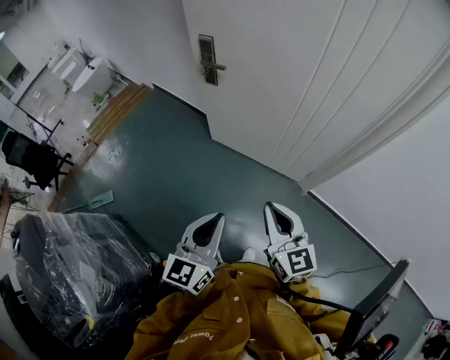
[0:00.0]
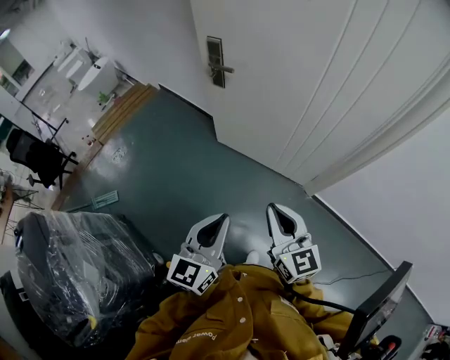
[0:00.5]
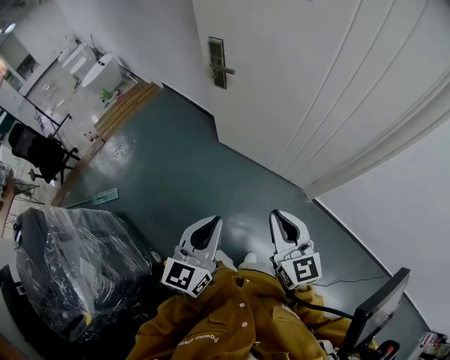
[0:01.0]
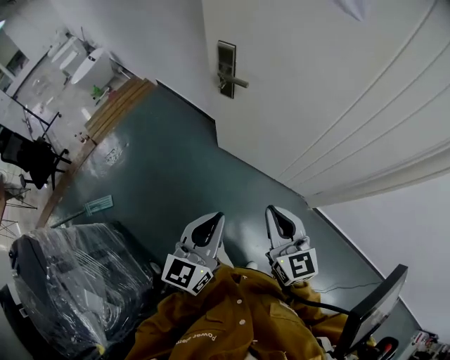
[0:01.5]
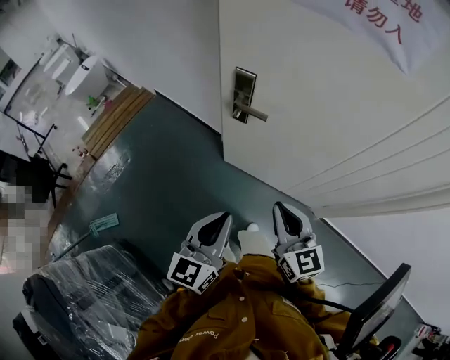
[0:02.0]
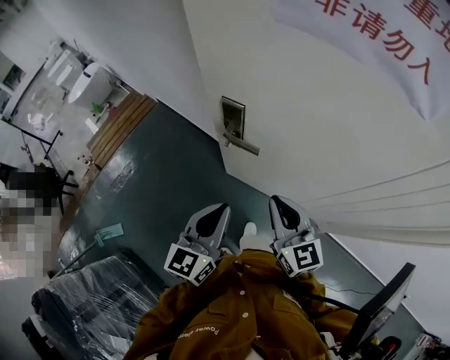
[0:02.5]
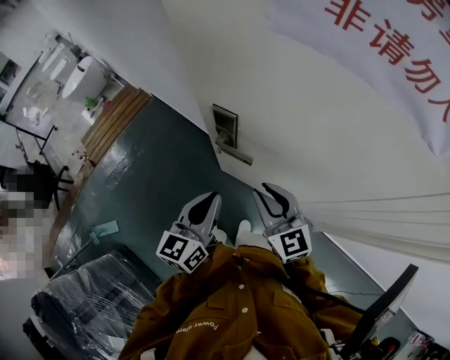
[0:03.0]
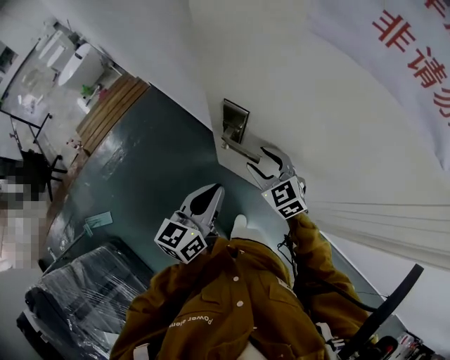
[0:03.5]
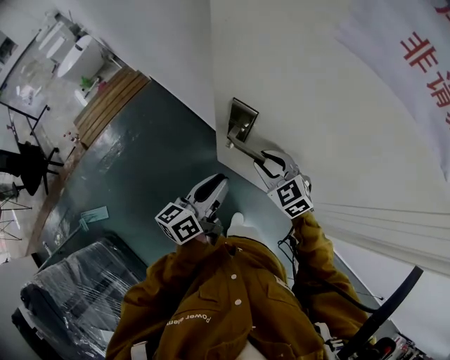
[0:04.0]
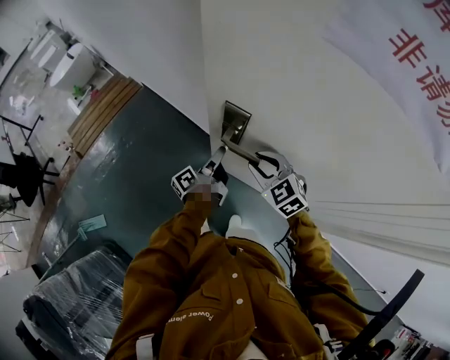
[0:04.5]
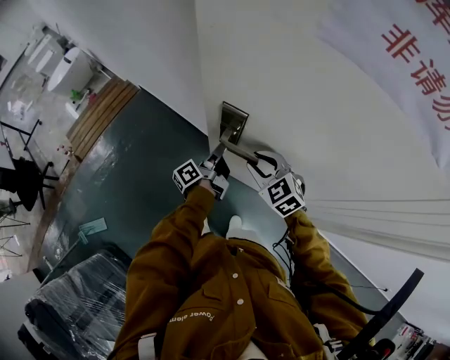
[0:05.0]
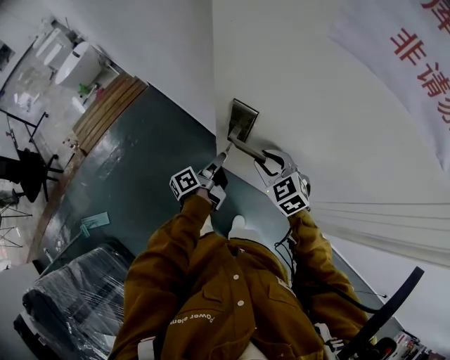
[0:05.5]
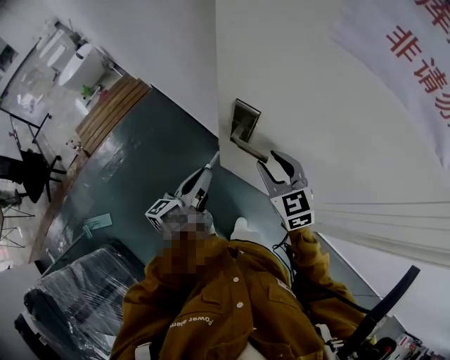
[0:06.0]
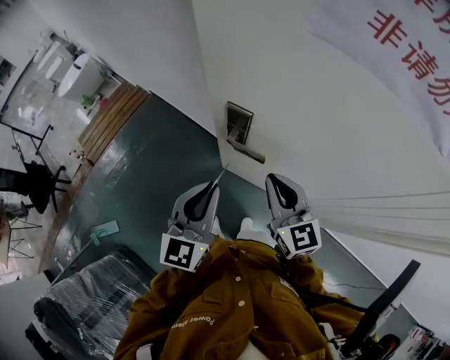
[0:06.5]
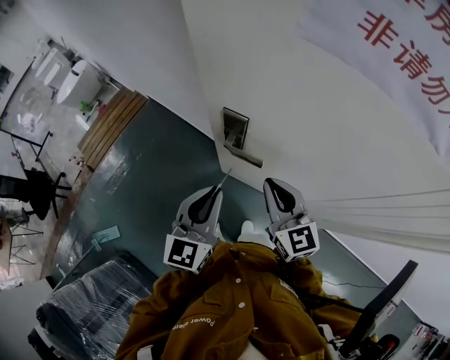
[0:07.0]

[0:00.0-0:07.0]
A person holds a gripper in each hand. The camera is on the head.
0:00.0 to 0:02.0: The two grippers go some 35 cm forward and to the left.
0:02.0 to 0:03.5: Both grippers move forward, approximately 25 cm. The right gripper rotates roughly 30 degrees, and opens.
0:03.5 to 0:05.0: The left gripper shifts about 25 cm forward and downward, rotates around the line of its fingers by approximately 60 degrees, counterclockwise from behind, and opens and closes again. The right gripper closes its fingers.
0:05.0 to 0:07.0: The right gripper travels upward and backward by some 15 cm, rotates about 40 degrees, and closes its fingers, while the left gripper heads upward and backward, covering roughly 25 cm, and twists roughly 80 degrees clockwise, seen from behind.

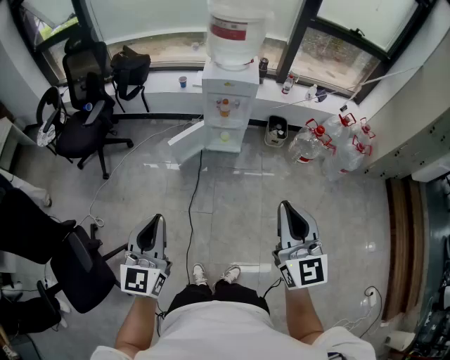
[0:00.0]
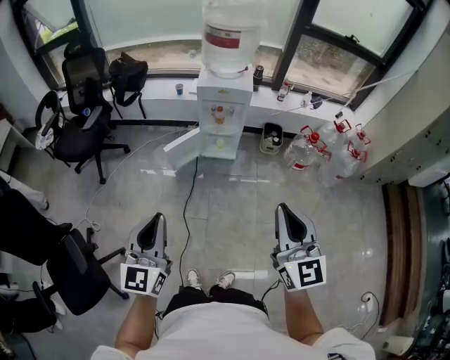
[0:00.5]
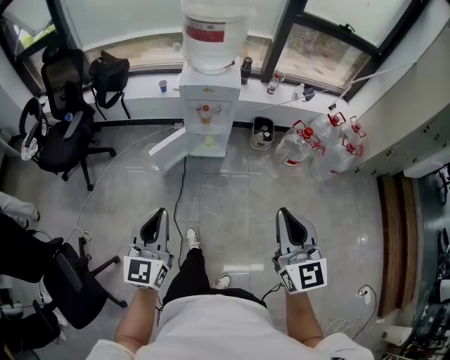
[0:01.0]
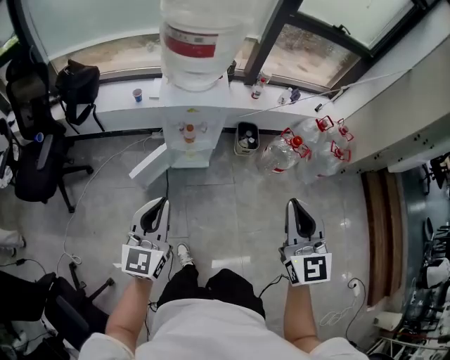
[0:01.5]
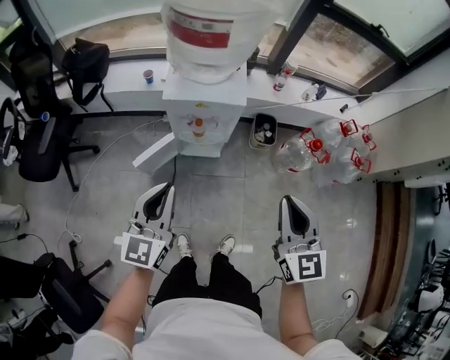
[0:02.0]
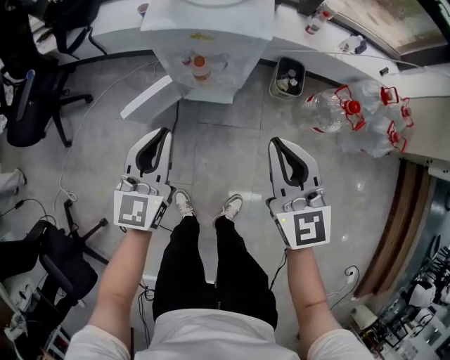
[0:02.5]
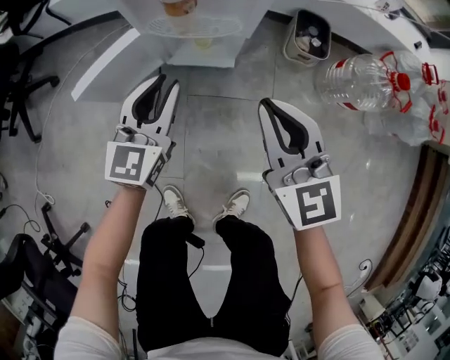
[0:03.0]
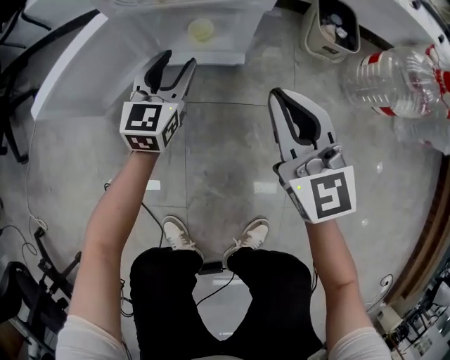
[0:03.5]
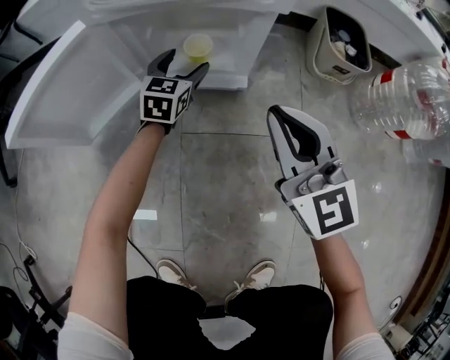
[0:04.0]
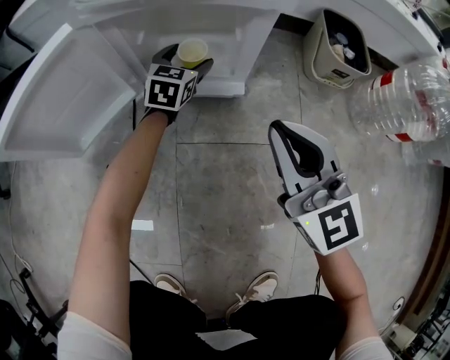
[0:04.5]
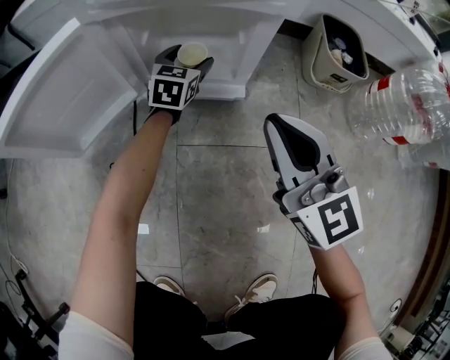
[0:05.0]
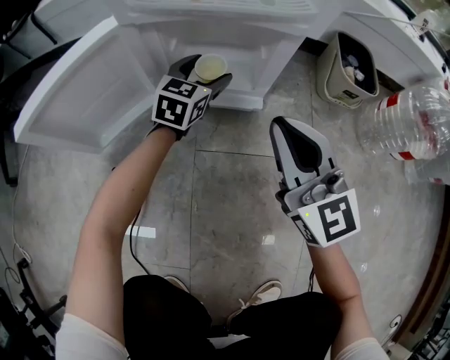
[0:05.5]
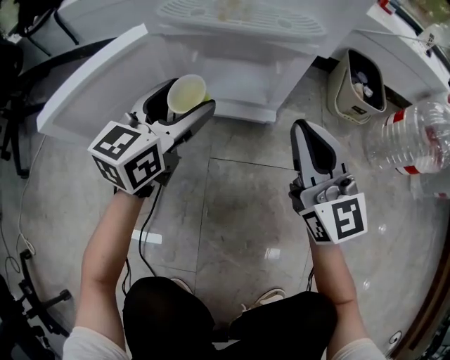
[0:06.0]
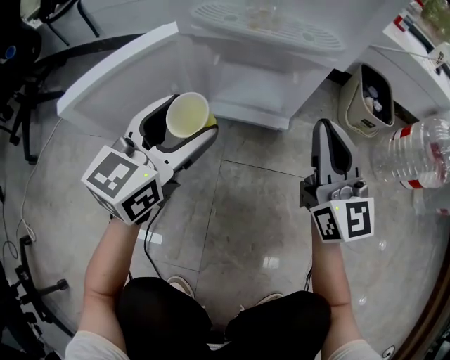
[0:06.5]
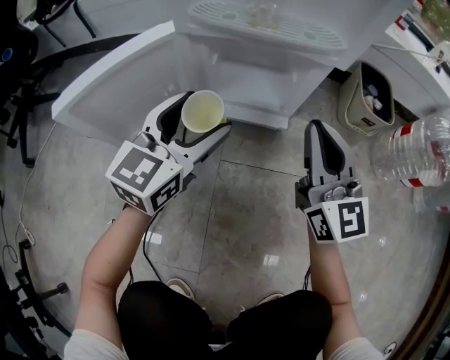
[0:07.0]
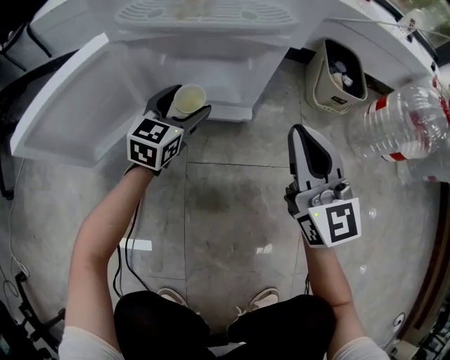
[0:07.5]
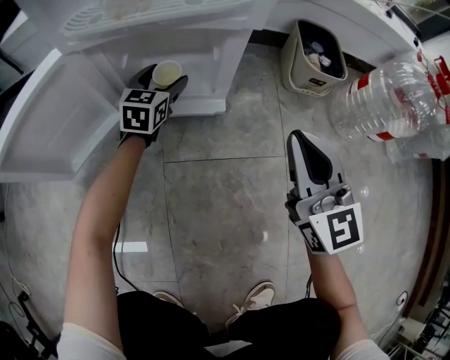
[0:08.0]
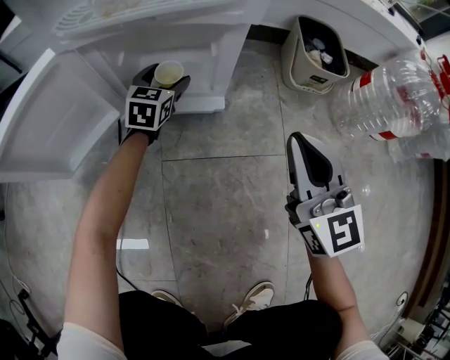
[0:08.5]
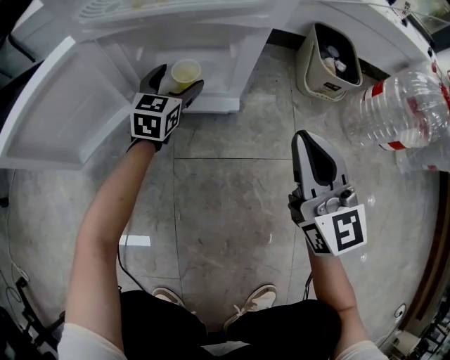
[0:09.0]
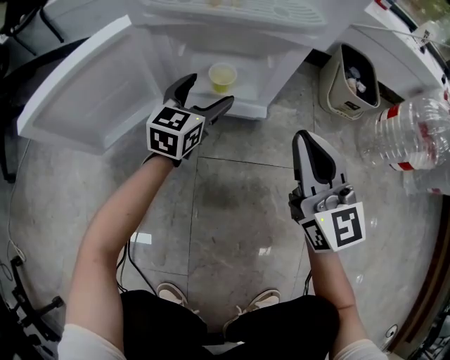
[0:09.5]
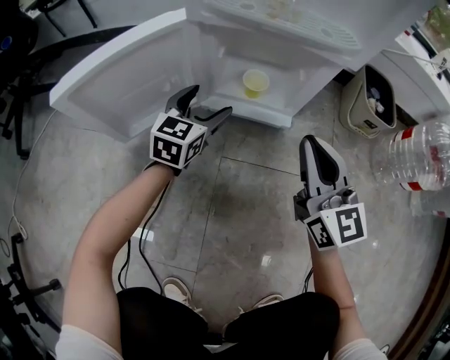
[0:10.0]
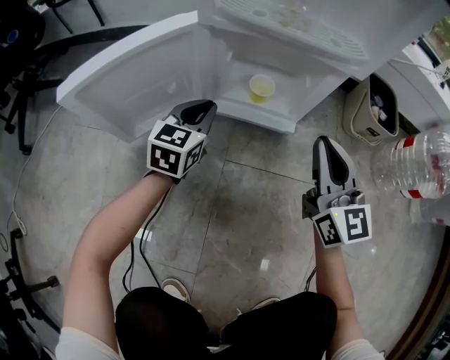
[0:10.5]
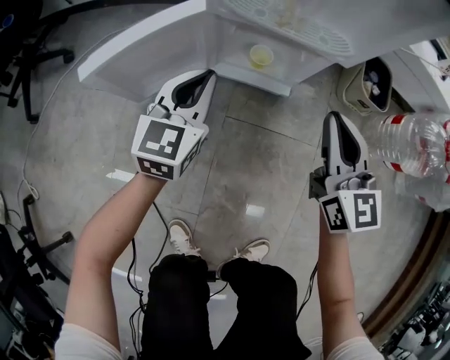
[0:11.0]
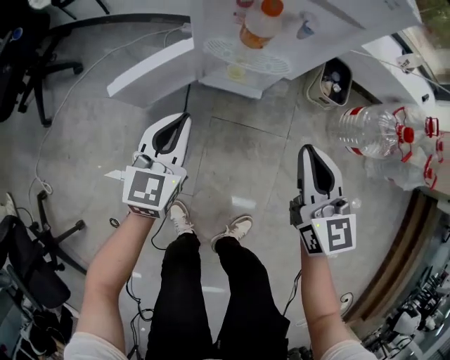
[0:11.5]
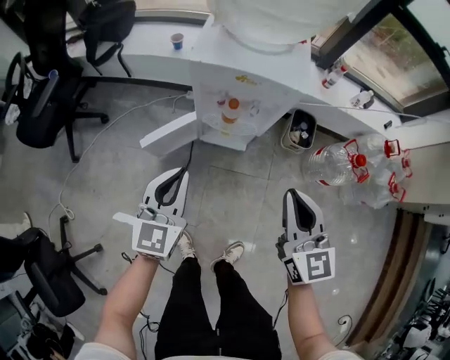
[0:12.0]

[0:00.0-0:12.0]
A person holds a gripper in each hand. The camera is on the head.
0:00.0 to 0:02.0: Both grippers travel together forward, about 35 cm.
0:02.0 to 0:04.0: The grippers both shift downward by some 70 cm. The left gripper opens up.
0:04.0 to 0:06.0: The left gripper moves upward, backward and to the left, roughly 20 cm, and changes its angle by approximately 20 degrees.
0:06.0 to 0:08.0: The left gripper heads downward and forward, covering about 20 cm. The right gripper goes roughly 10 cm to the right.
0:08.0 to 0:10.0: The right gripper travels to the left by roughly 10 cm, while the left gripper moves backward and to the left, some 15 cm.
0:10.0 to 0:12.0: Both grippers travel together upward, some 50 cm. The left gripper closes up.

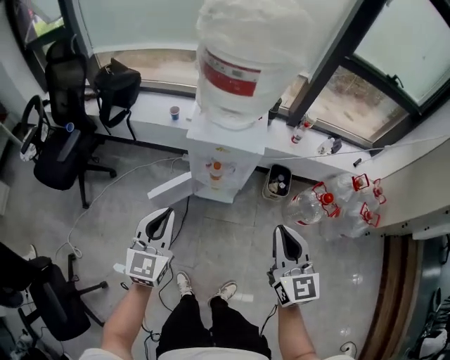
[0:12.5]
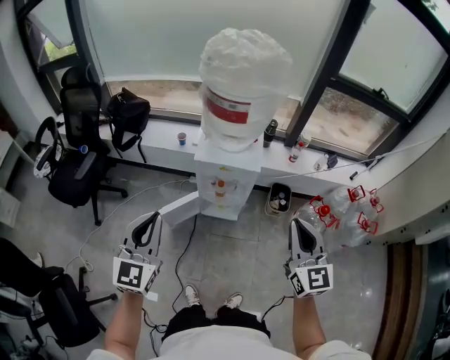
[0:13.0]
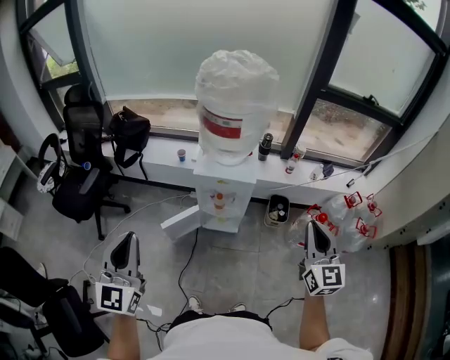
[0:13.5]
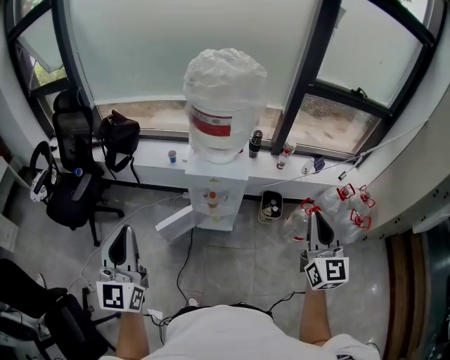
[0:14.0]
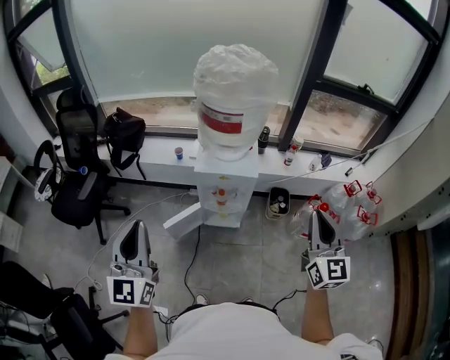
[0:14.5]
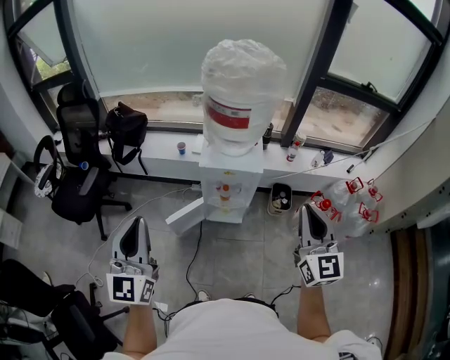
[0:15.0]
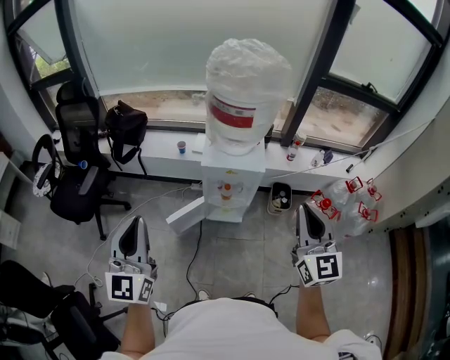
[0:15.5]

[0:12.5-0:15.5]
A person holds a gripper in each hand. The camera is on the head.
0:12.5 to 0:14.0: The right gripper moves upward and to the right, approximately 20 cm. Meanwhile the left gripper goes roughly 20 cm upward, and turns by approximately 20 degrees.
0:14.0 to 0:15.5: The left gripper moves some 5 cm, while the right gripper is displaced to the left by approximately 10 cm.

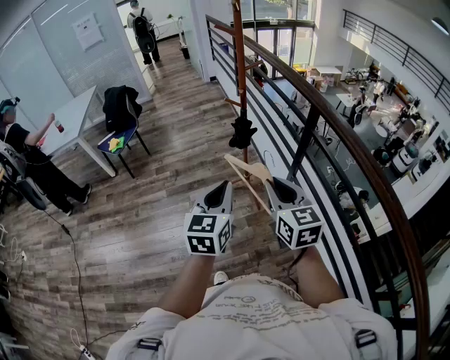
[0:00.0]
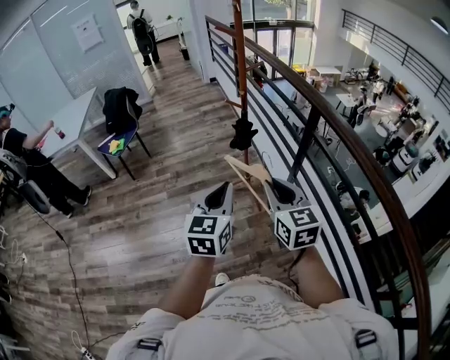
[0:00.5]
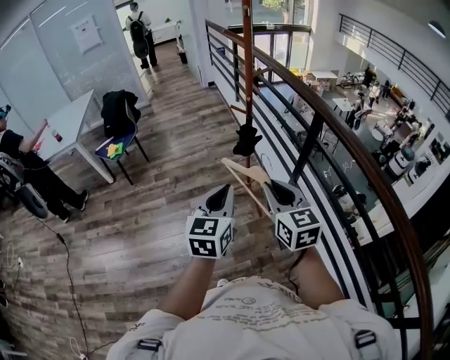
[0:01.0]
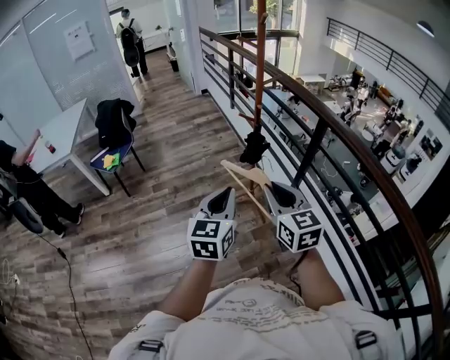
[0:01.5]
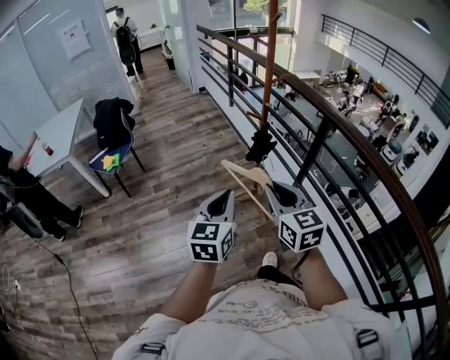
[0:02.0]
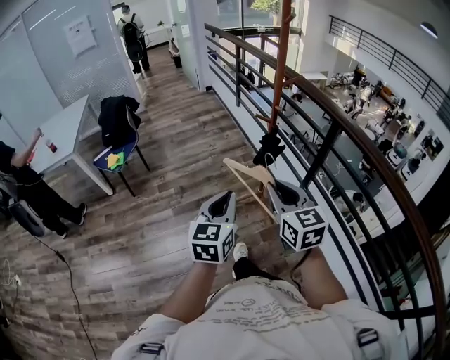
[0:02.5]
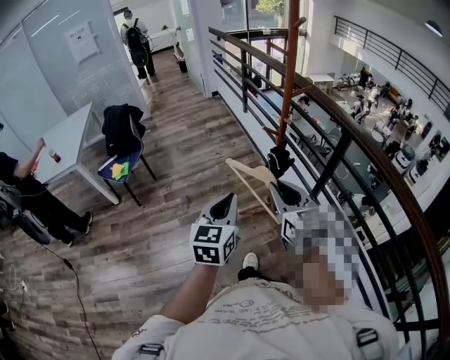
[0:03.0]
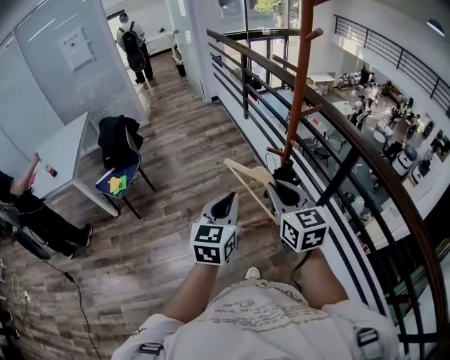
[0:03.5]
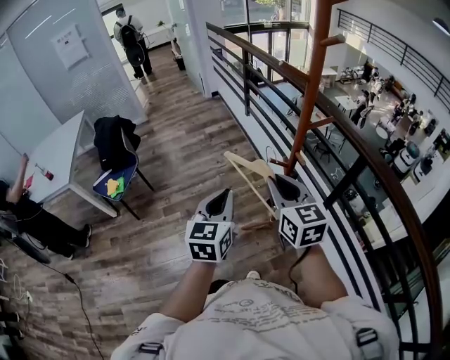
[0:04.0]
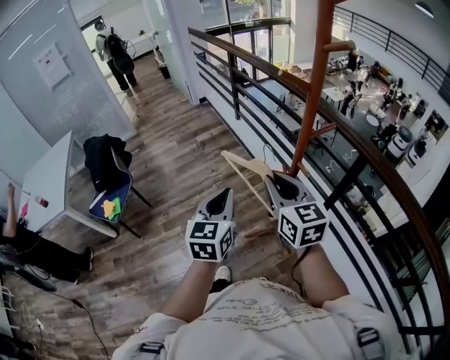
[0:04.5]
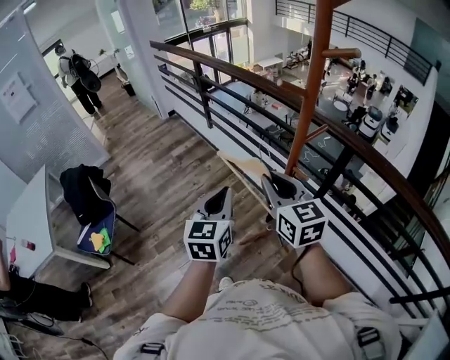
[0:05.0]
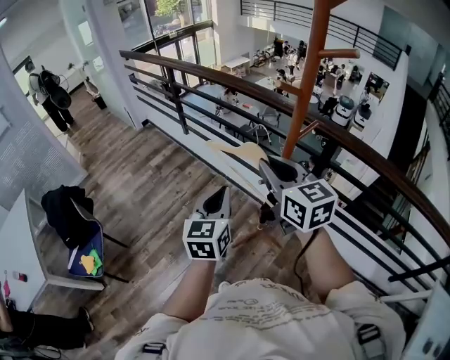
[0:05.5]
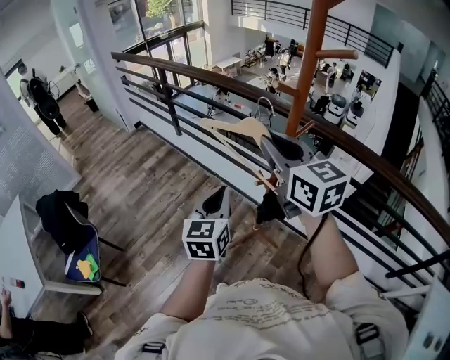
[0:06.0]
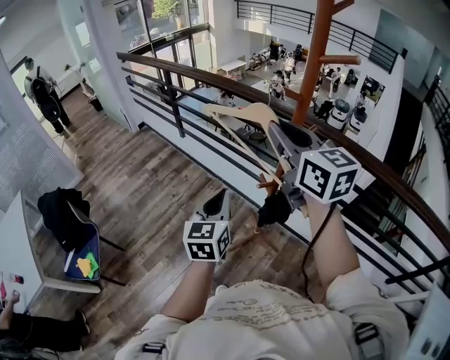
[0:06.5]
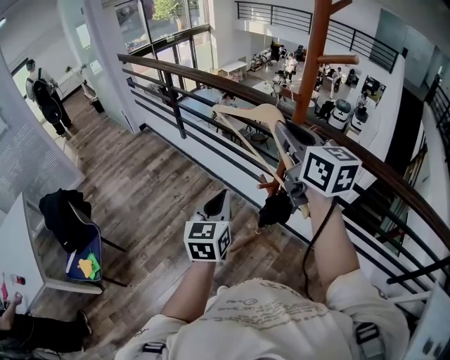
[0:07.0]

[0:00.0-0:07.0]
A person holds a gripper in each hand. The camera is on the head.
0:00.0 to 0:02.0: Both grippers travel together to the left, some 15 cm.
0:02.0 to 0:03.5: Both grippers travel together forward, about 25 cm.
0:03.5 to 0:05.0: The two grippers go approximately 20 cm forward.
0:05.0 to 0:07.0: The right gripper moves upward and forward, roughly 15 cm.
